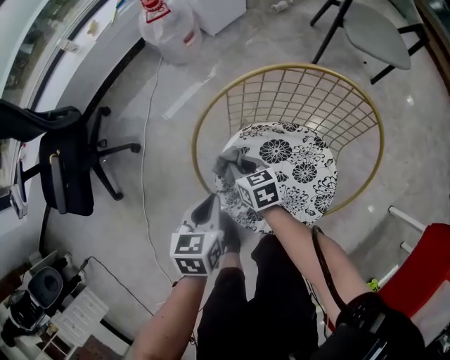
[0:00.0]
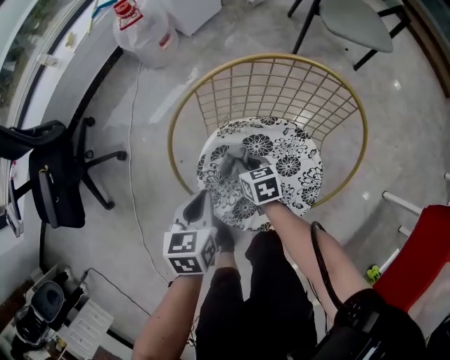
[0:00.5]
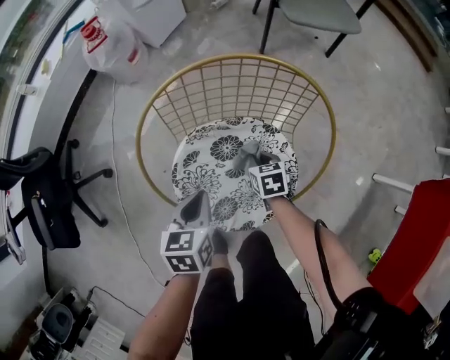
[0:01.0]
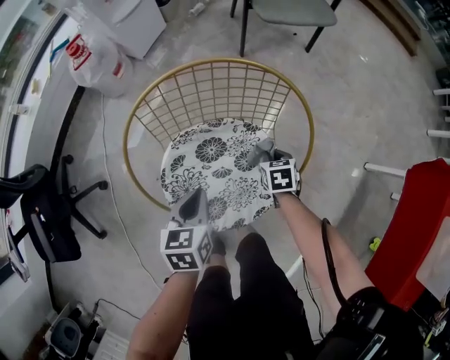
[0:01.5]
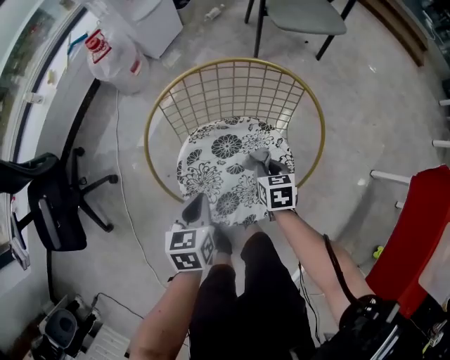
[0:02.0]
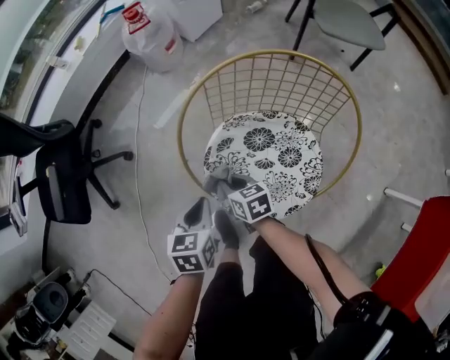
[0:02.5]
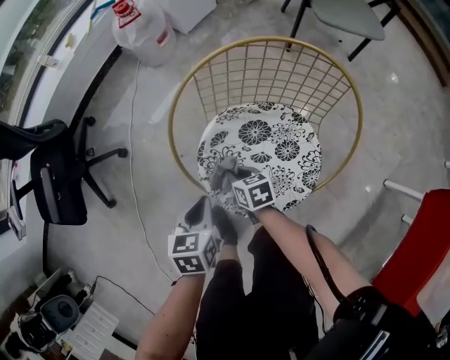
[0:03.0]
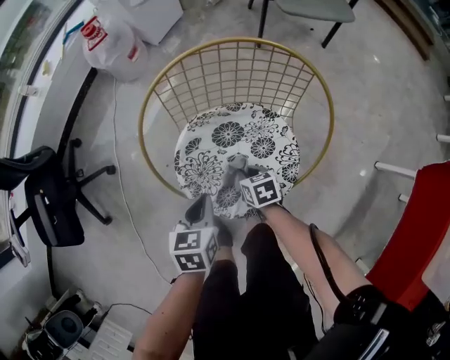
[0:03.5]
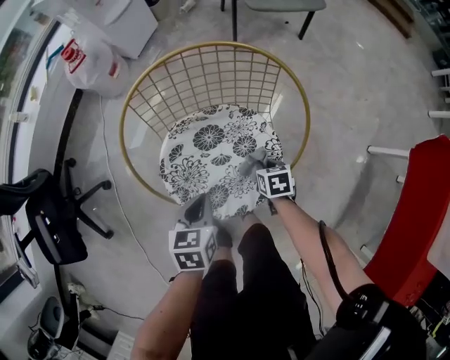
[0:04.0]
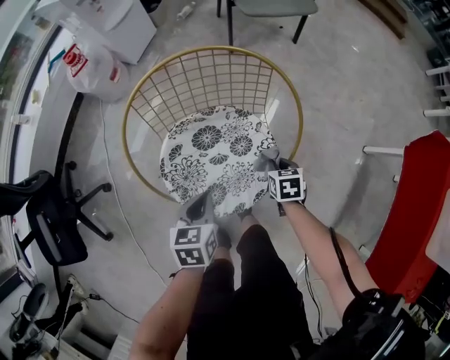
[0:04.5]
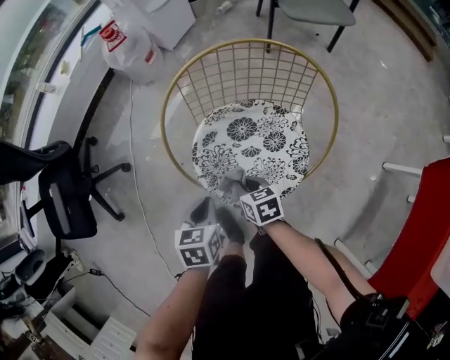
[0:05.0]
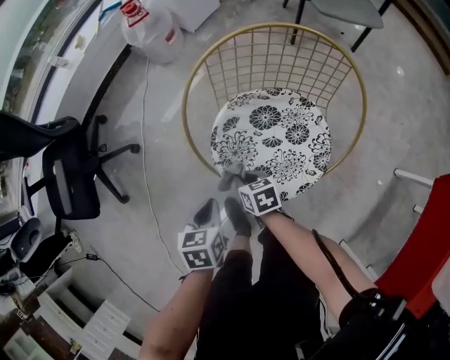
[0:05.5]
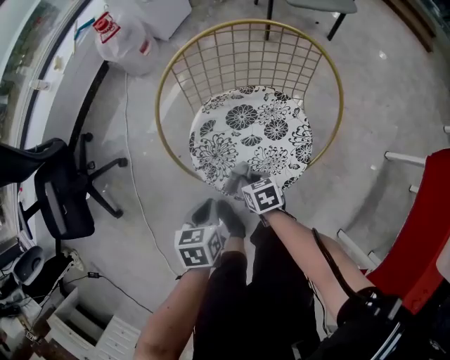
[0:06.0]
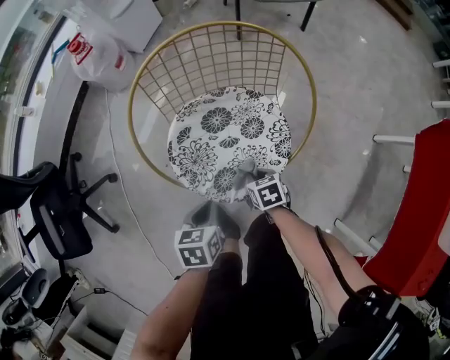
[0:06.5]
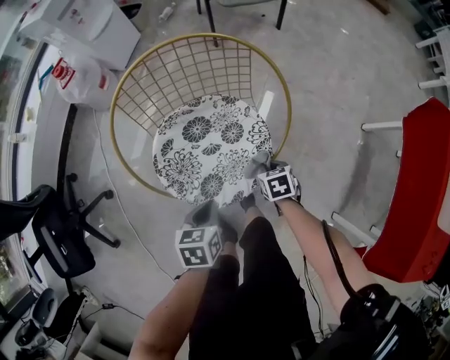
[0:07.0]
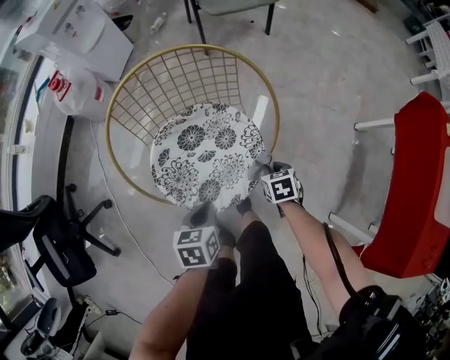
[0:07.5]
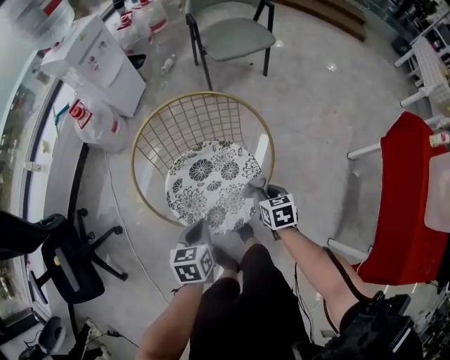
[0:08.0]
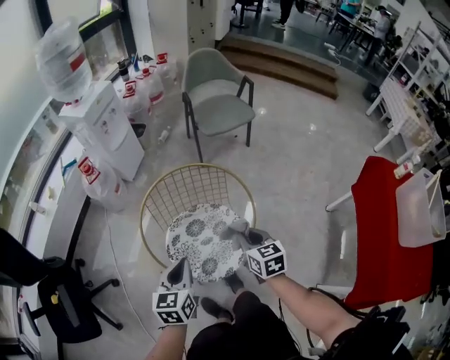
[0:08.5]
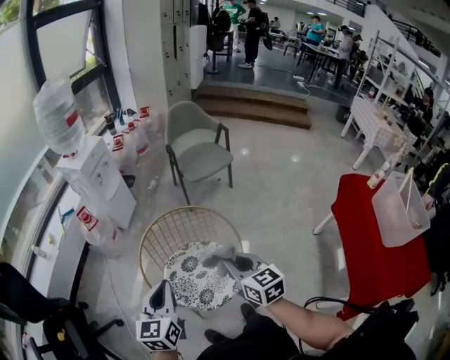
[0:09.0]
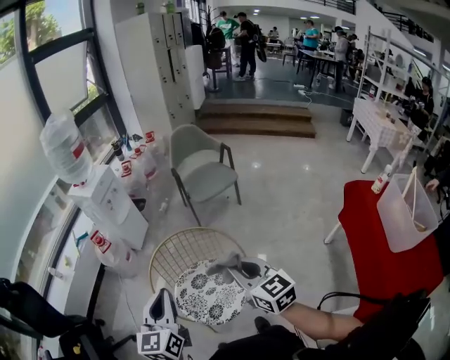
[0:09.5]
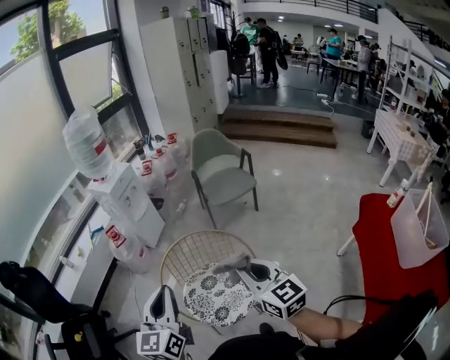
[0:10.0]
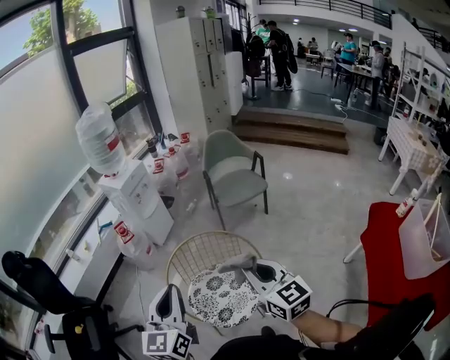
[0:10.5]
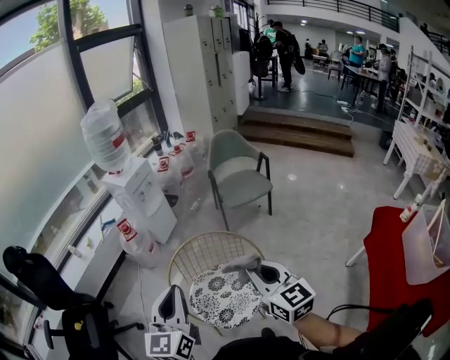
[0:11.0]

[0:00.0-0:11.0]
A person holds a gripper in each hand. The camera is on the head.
0:00.0 to 0:02.0: The right gripper shifts by approximately 25 cm, and changes its angle by roughly 30 degrees.
0:03.5 to 0:05.5: The right gripper changes place by approximately 15 cm. Meanwhile the left gripper moves about 10 cm.
0:05.5 to 0:07.5: The left gripper ends up roughly 15 cm from where it was, and changes its angle by approximately 20 degrees. Meanwhile the right gripper changes place by some 30 cm, and turns by about 30 degrees.
0:07.5 to 0:09.0: The grippers both shift upward by some 40 cm. The right gripper tips its fingers upward by some 50 degrees; the left gripper tips its fingers upward by some 40 degrees.
0:09.0 to 0:11.0: The grippers both shift upward by roughly 15 cm.

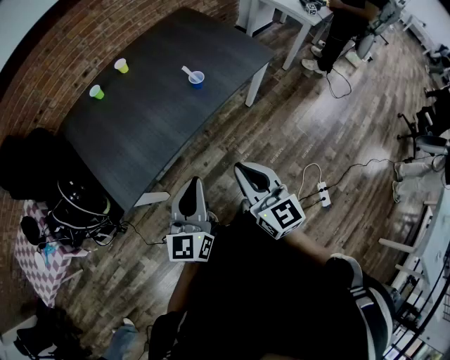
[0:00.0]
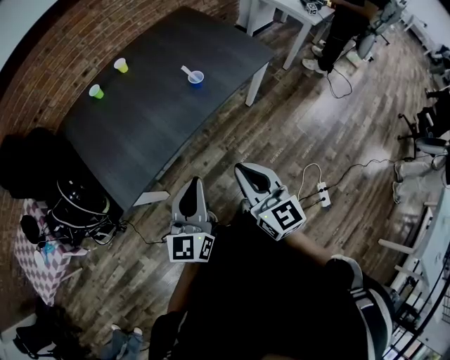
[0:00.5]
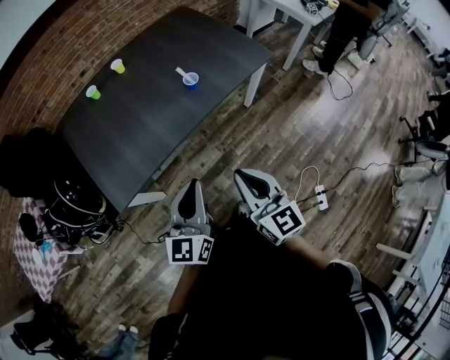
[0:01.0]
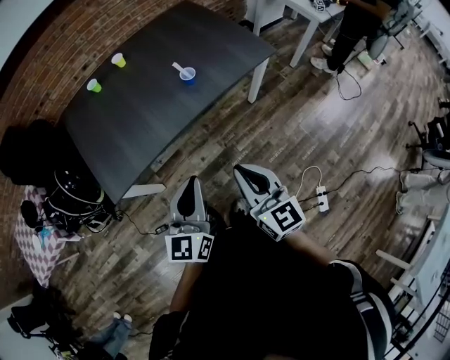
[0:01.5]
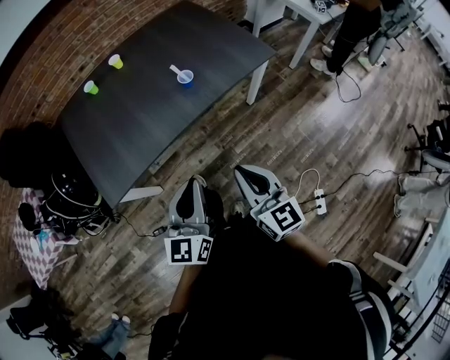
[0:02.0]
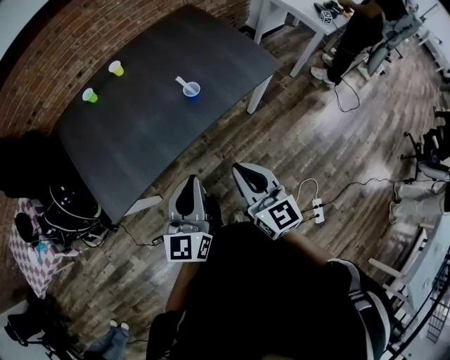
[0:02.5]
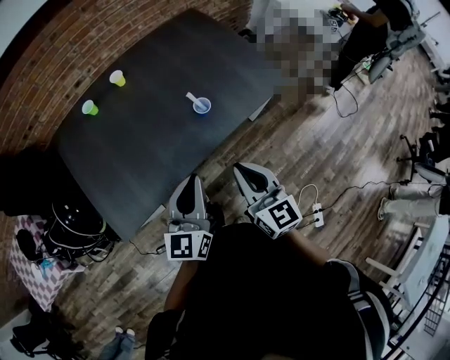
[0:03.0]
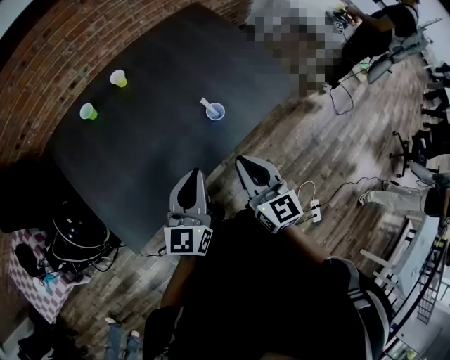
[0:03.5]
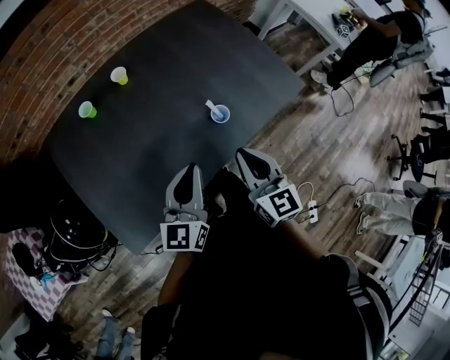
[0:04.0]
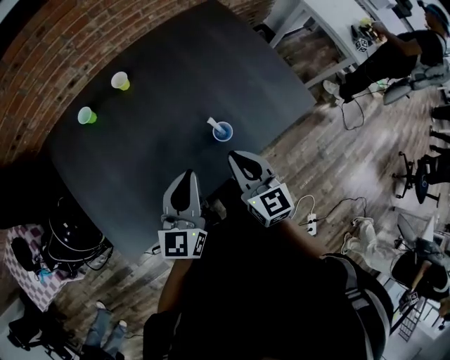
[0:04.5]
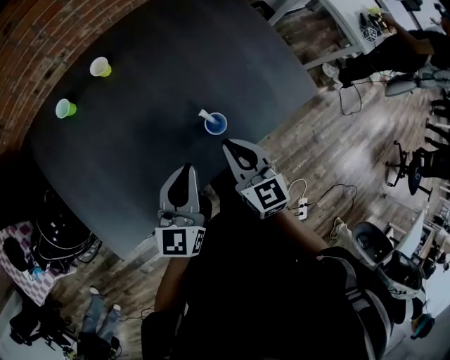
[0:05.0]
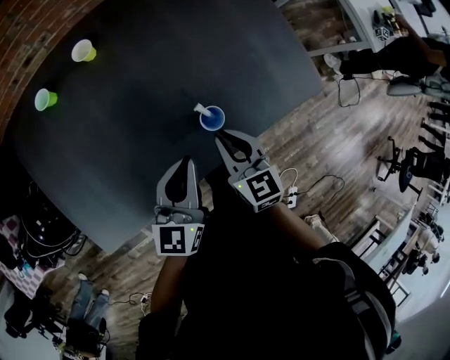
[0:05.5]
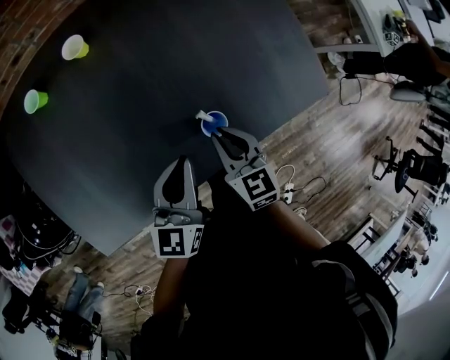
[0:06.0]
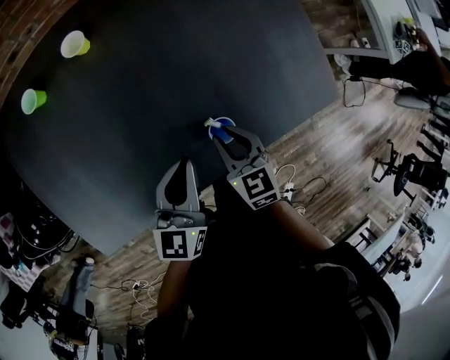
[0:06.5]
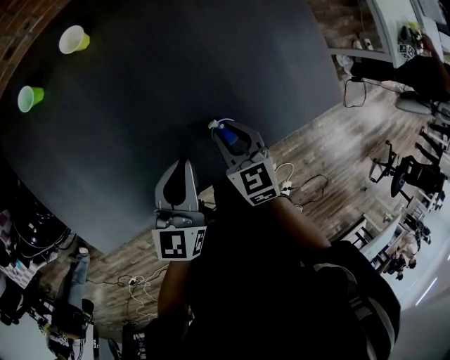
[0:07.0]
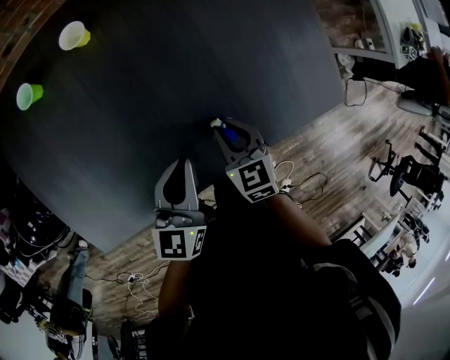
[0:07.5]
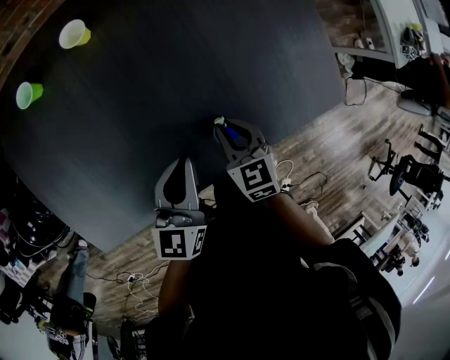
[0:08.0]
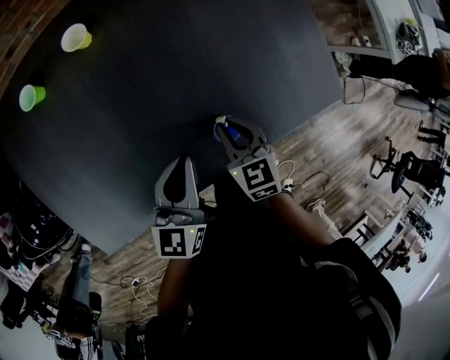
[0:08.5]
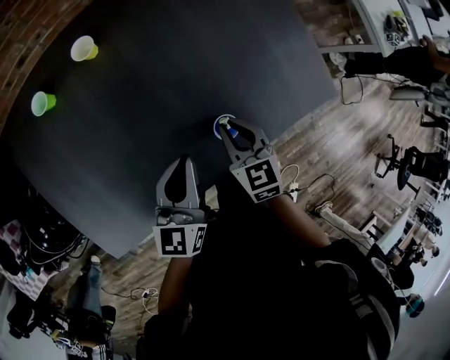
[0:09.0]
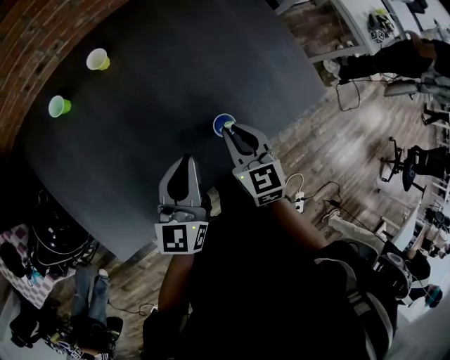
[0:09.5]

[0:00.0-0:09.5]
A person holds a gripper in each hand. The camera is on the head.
0:00.0 to 0:02.0: Both grippers travel together to the right, about 10 cm.
0:02.0 to 0:04.0: Both grippers travel together forward, about 30 cm.
0:04.0 to 0:05.5: The right gripper travels downward and forward by roughly 20 cm, and turns by approximately 20 degrees. The left gripper heads forward, downward and to the right, covering some 15 cm.
0:05.5 to 0:07.5: The two grippers go roughly 10 cm downward and forward.
0:07.5 to 0:09.5: The two grippers go roughly 10 cm upward.

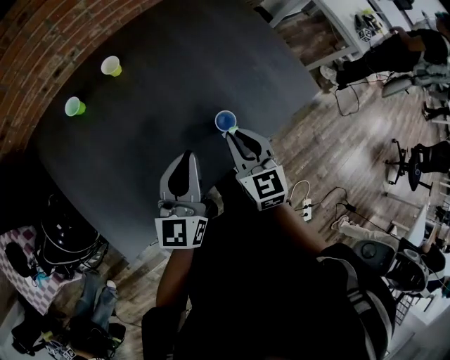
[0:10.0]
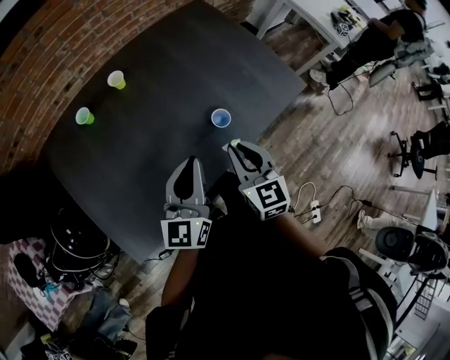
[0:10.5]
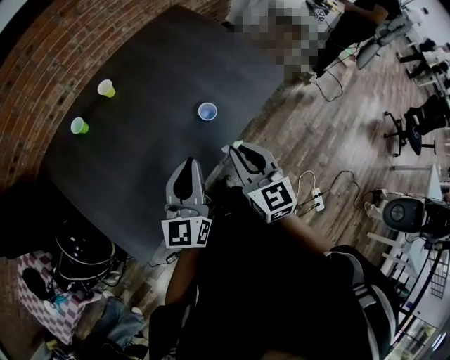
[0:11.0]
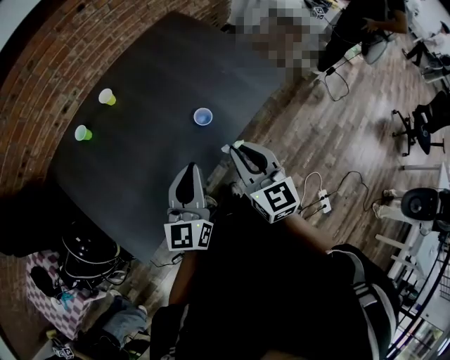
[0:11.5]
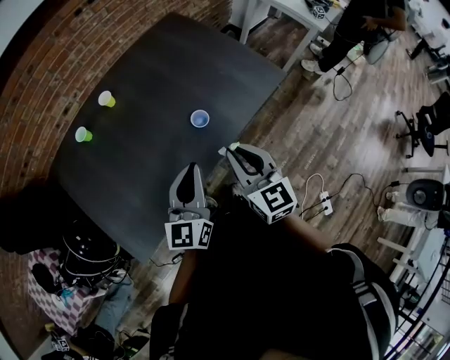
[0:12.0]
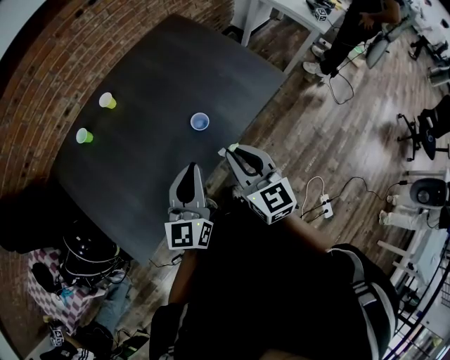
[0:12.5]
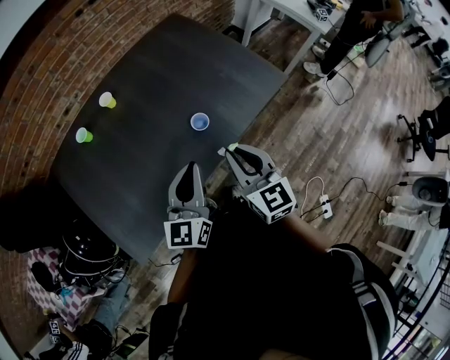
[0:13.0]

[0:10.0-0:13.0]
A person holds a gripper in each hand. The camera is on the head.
0:10.0 to 0:11.5: The left gripper goes some 15 cm backward, to the right and upward; the right gripper goes roughly 20 cm backward, upward and to the right.
0:11.5 to 0:13.0: The grippers make only small movements.

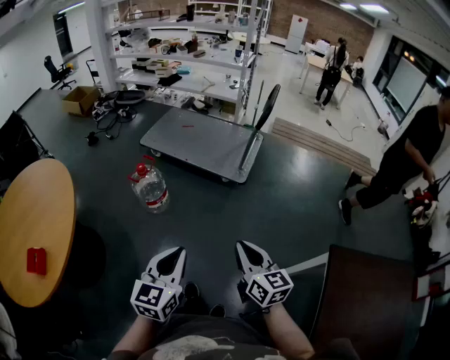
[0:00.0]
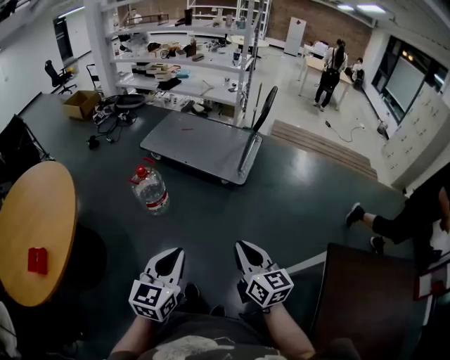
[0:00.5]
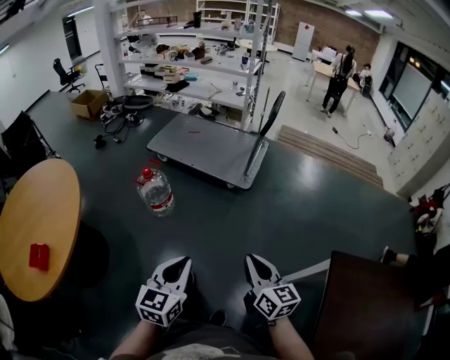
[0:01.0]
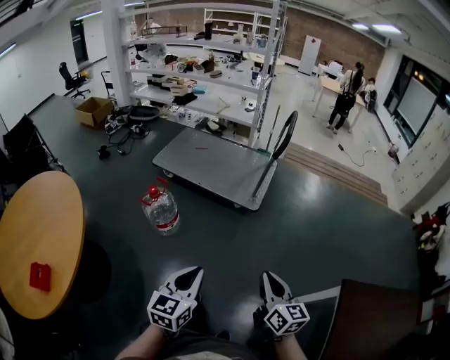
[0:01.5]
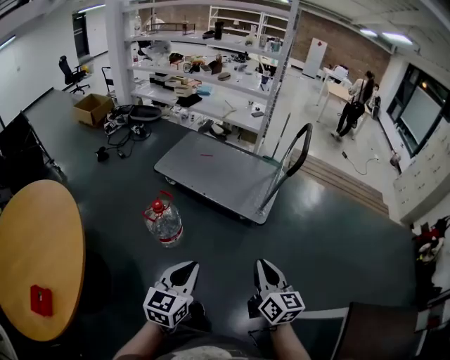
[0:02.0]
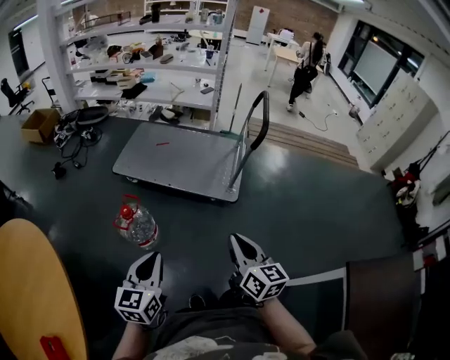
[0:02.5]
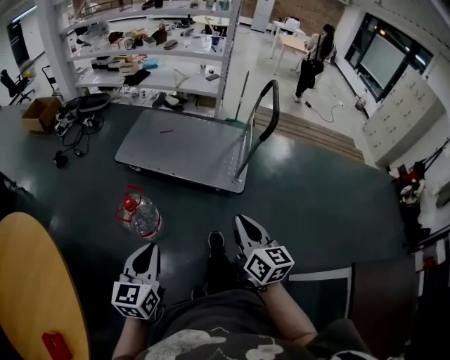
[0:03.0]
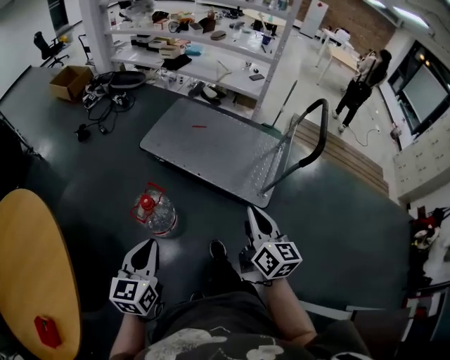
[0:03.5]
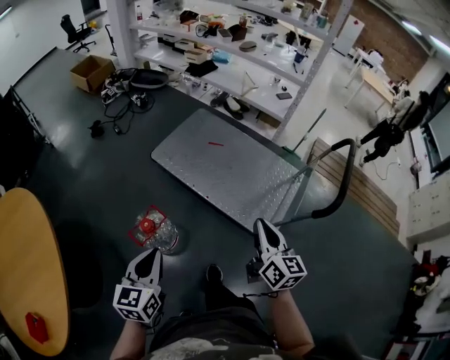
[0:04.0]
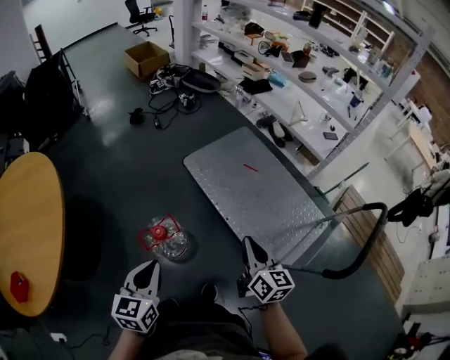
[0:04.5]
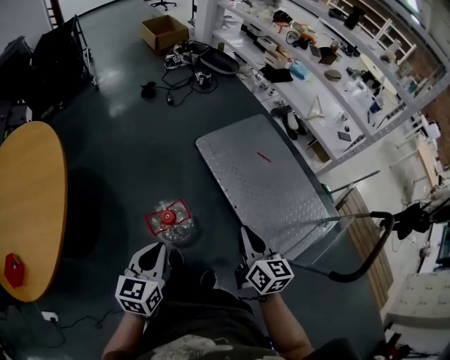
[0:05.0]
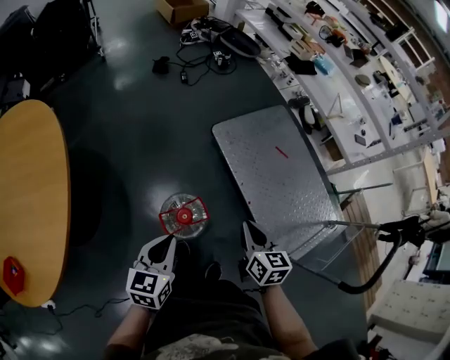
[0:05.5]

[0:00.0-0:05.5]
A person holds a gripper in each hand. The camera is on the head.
0:00.0 to 0:02.0: The left gripper heads forward and to the left, covering approximately 20 cm. Meanwhile the right gripper moves forward, approximately 20 cm.
0:02.0 to 0:03.5: The left gripper is displaced forward and to the left by about 25 cm. The right gripper heads forward, covering about 30 cm.
0:03.5 to 0:05.5: The left gripper shifts by roughly 25 cm, and changes its angle by some 30 degrees, while the right gripper ends up approximately 40 cm from where it was, and changes its angle by some 40 degrees.
